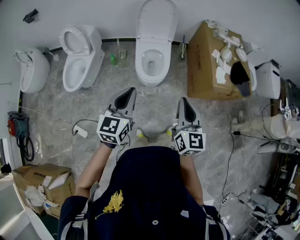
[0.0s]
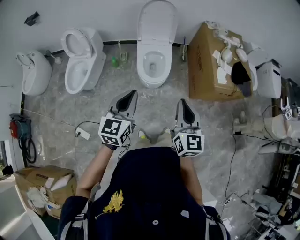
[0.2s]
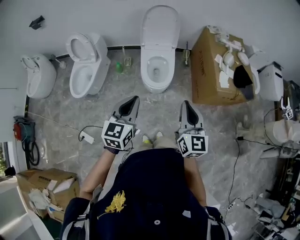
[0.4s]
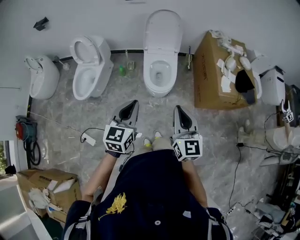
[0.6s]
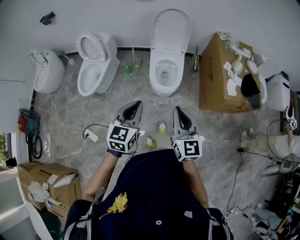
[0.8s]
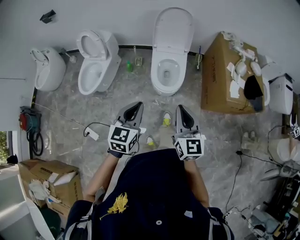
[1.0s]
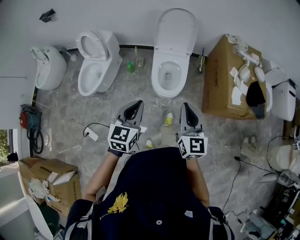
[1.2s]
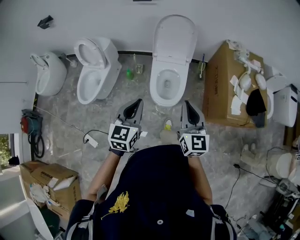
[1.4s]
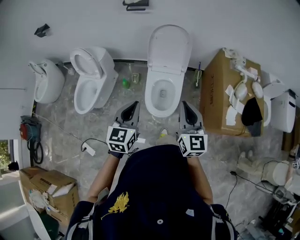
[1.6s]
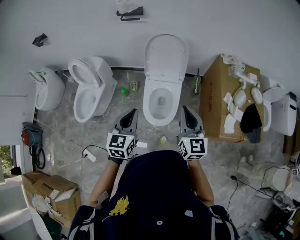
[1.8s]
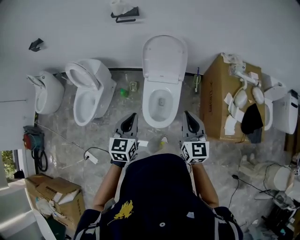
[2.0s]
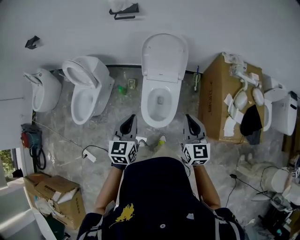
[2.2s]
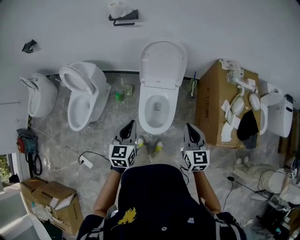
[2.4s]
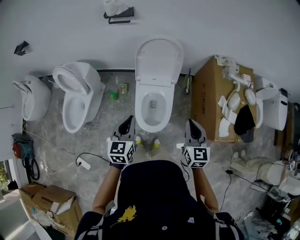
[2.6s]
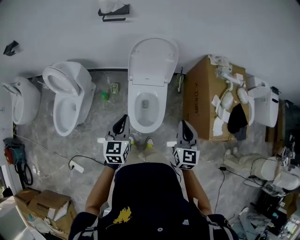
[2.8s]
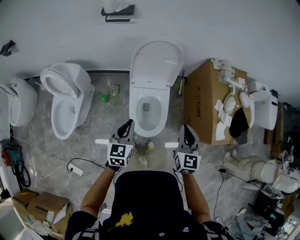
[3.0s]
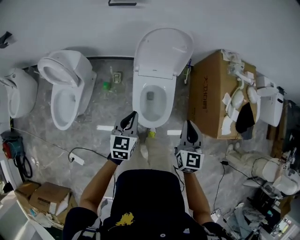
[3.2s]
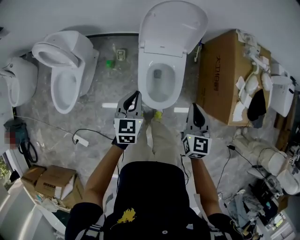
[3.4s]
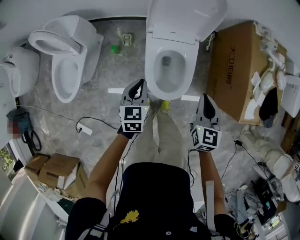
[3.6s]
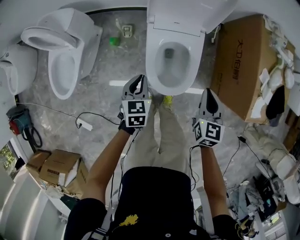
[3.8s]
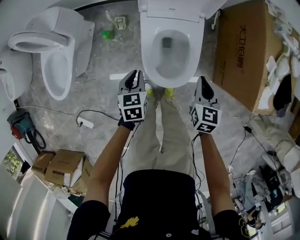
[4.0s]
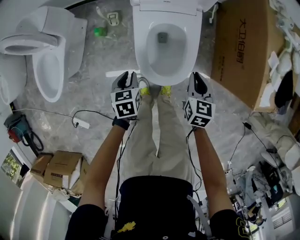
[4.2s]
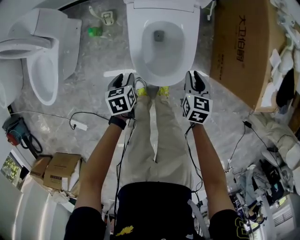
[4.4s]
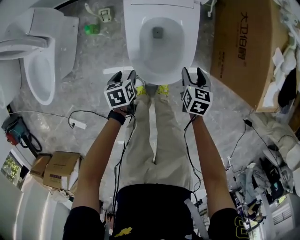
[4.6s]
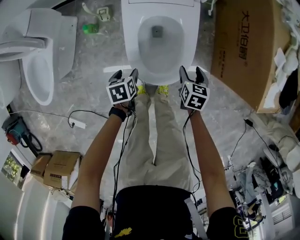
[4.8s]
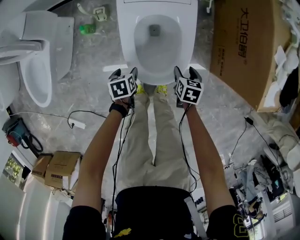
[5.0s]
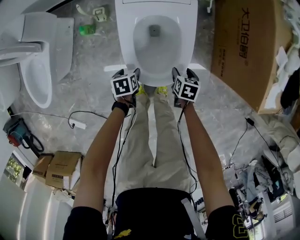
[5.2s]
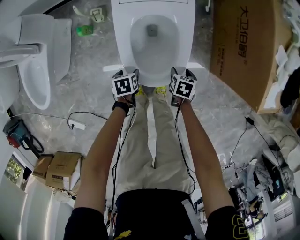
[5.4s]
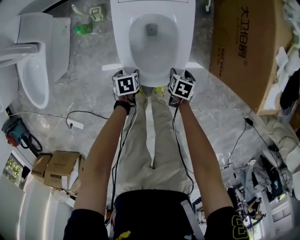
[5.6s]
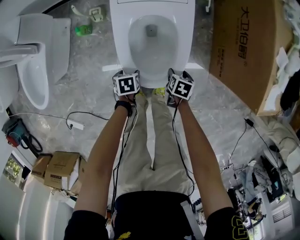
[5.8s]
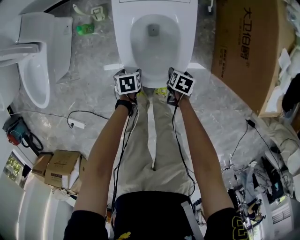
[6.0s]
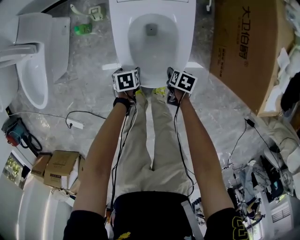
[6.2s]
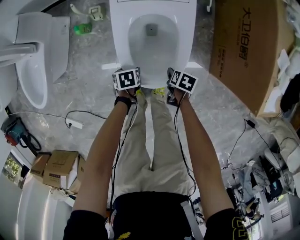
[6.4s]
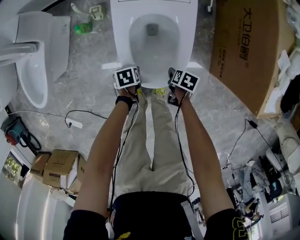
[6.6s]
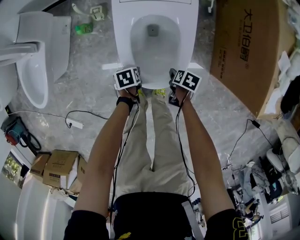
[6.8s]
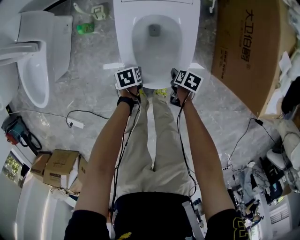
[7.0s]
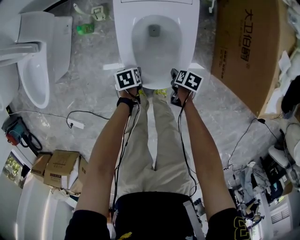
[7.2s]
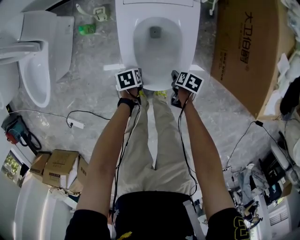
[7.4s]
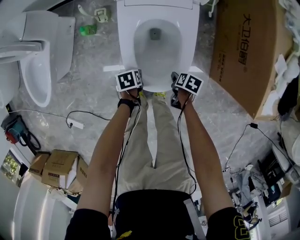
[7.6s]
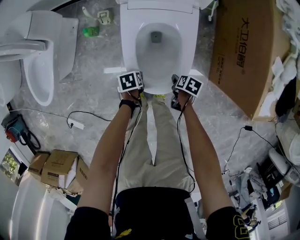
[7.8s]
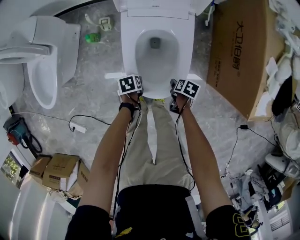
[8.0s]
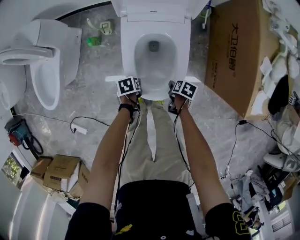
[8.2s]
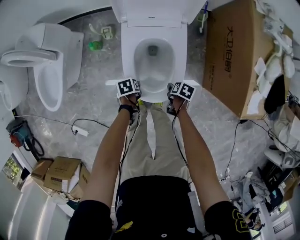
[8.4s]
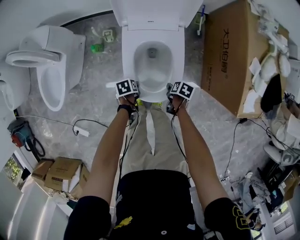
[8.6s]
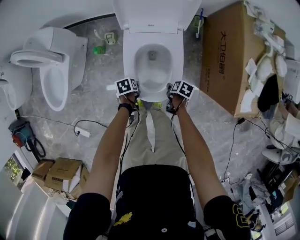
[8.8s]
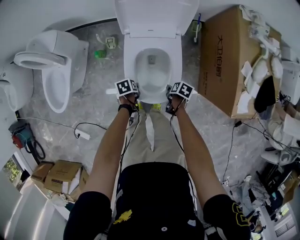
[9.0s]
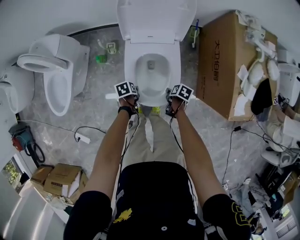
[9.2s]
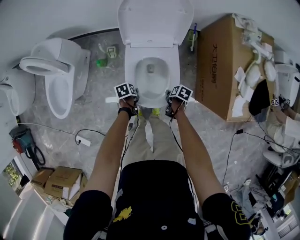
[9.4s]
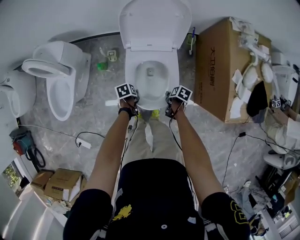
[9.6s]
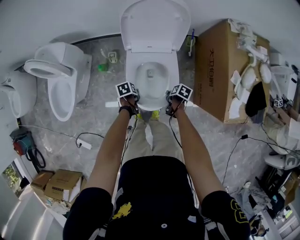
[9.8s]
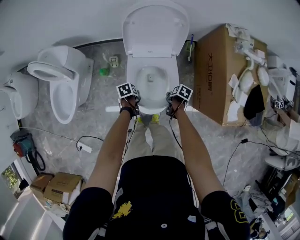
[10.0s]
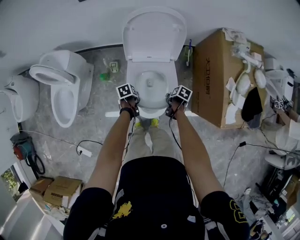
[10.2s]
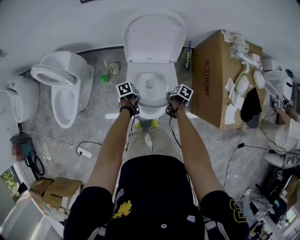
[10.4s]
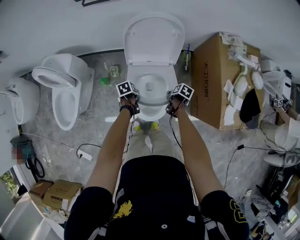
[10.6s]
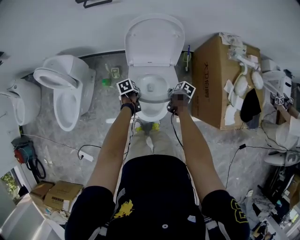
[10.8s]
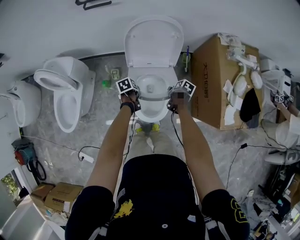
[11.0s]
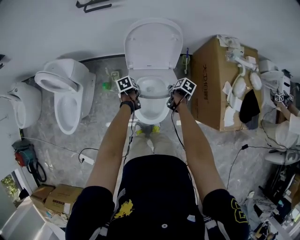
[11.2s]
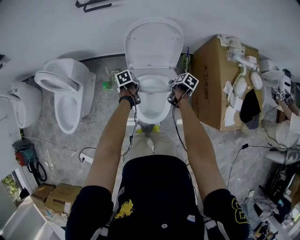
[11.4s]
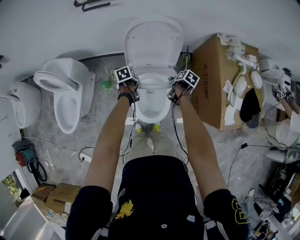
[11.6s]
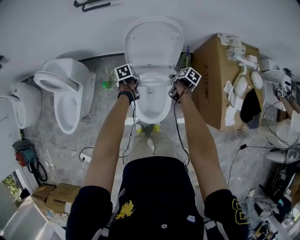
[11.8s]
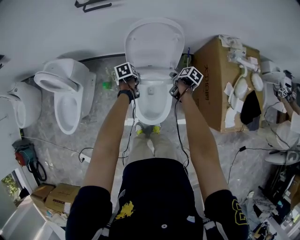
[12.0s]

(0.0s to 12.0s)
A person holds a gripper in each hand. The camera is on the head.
0.0s - 1.6s: Both grippers move forward, roughly 25 cm.
1.6s - 3.0s: Both grippers travel together forward and downward, some 20 cm. The right gripper turns by about 20 degrees.
3.0s - 4.4s: The grippers both shift downward by approximately 40 cm. The right gripper changes its angle by roughly 30 degrees; the left gripper points its fingers approximately 40 degrees further downward, and opens its fingers.
4.4s - 6.0s: The left gripper travels downward by about 15 cm, and opens its fingers. Meanwhile the right gripper is displaced downward by approximately 20 cm, turns by roughly 40 degrees, and opens up.
6.0s - 7.6s: The grippers stay close to where they were, moving slightly.
7.6s - 9.0s: The grippers both shift upward by roughly 15 cm.
9.0s - 10.4s: Both grippers travel together upward, approximately 10 cm.
10.4s - 12.0s: The left gripper shifts by roughly 15 cm, while the right gripper shifts by roughly 15 cm.

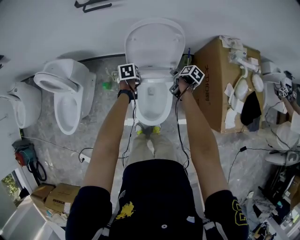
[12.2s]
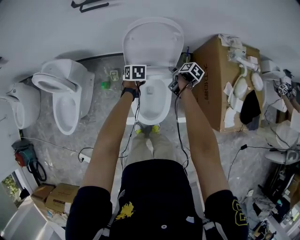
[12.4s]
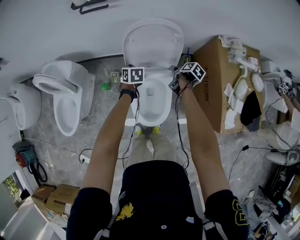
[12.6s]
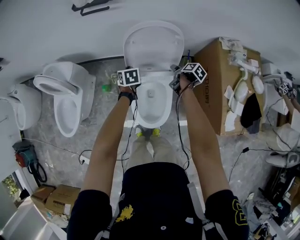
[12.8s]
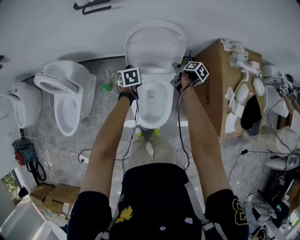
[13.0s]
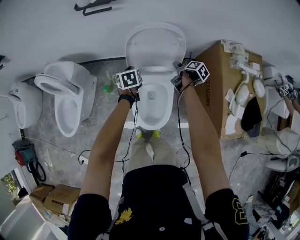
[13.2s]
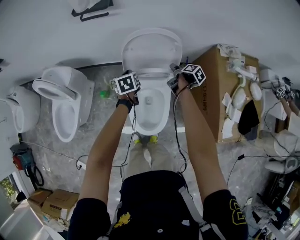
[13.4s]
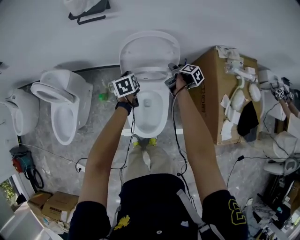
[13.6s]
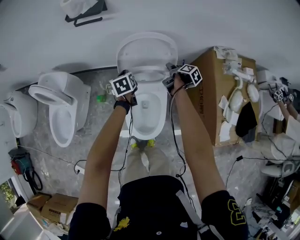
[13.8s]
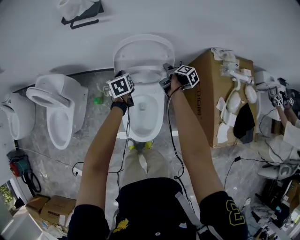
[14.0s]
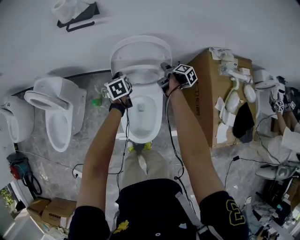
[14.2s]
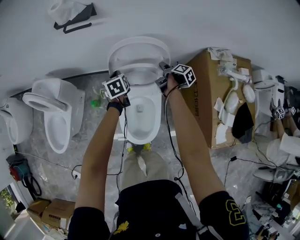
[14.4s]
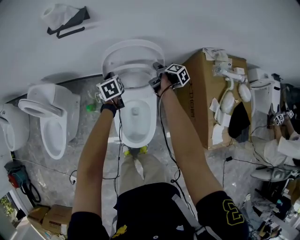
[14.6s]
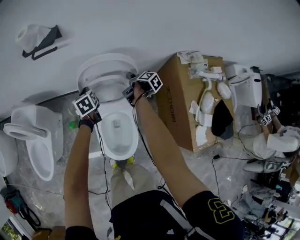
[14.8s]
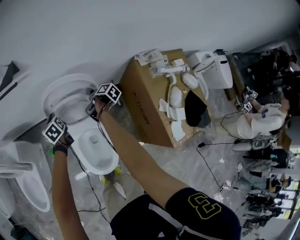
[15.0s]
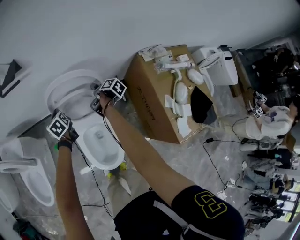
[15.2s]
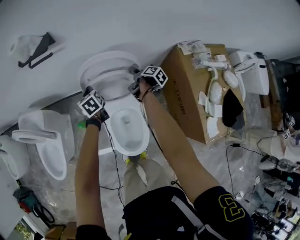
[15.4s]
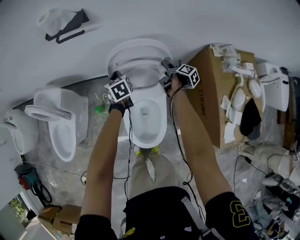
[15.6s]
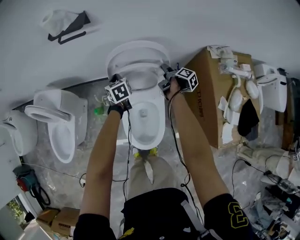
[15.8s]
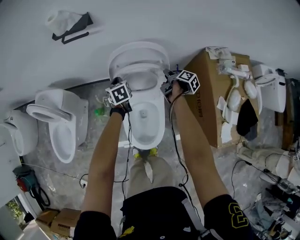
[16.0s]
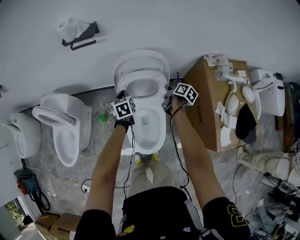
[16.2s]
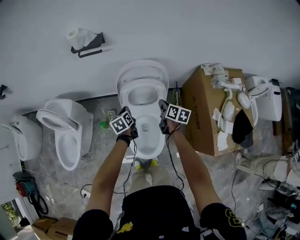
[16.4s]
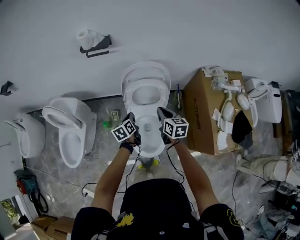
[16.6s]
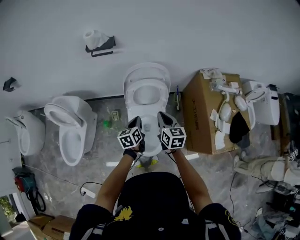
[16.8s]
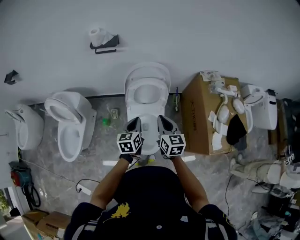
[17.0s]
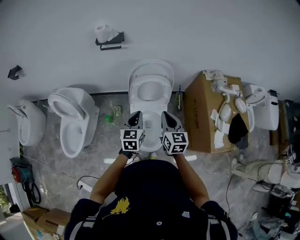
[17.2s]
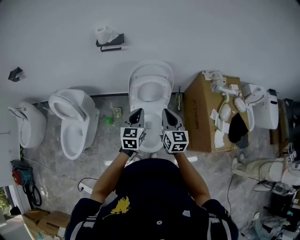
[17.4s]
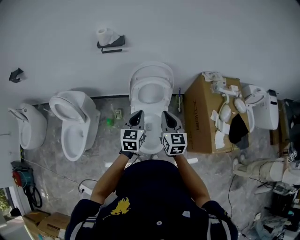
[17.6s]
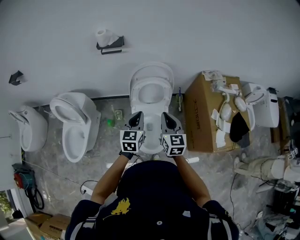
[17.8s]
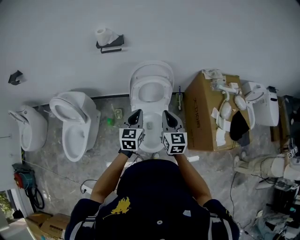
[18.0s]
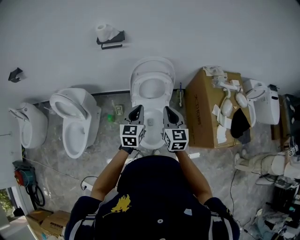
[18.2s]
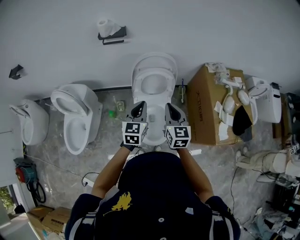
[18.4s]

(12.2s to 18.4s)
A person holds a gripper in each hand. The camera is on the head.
12.2s - 13.8s: The right gripper is displaced forward by roughly 10 cm, and swivels some 20 degrees, while the left gripper travels upward and forward by some 10 cm, and changes its angle by some 20 degrees.
13.8s - 15.4s: The two grippers go roughly 5 cm forward.
15.4s - 16.8s: The left gripper shifts about 25 cm backward and upward, and rotates some 20 degrees. The right gripper goes some 35 cm backward, upward and to the left, twists some 70 degrees counterclockwise, seen from behind, and closes.
16.8s - 18.4s: The left gripper is displaced upward by about 15 cm, and turns by some 30 degrees. The right gripper goes some 10 cm upward and backward.

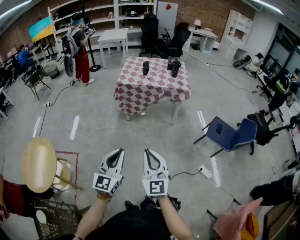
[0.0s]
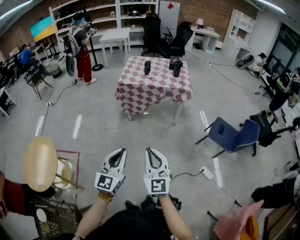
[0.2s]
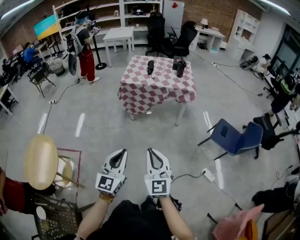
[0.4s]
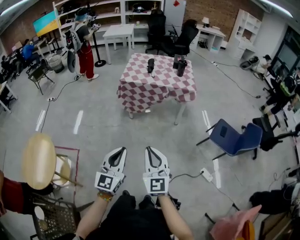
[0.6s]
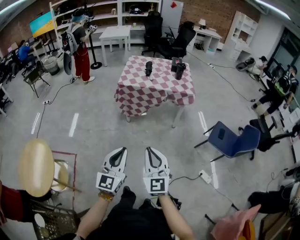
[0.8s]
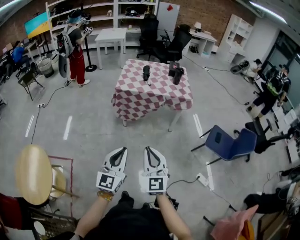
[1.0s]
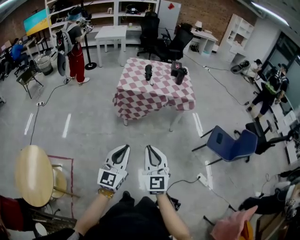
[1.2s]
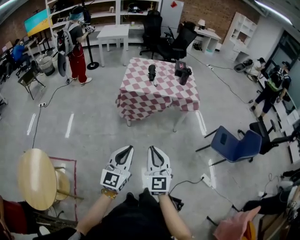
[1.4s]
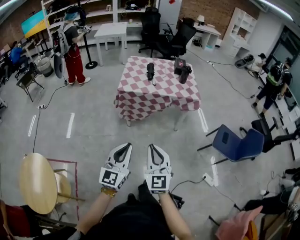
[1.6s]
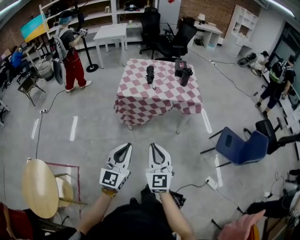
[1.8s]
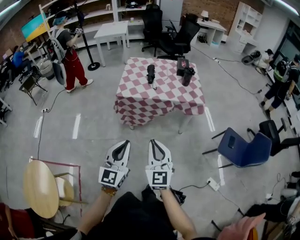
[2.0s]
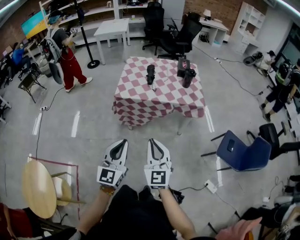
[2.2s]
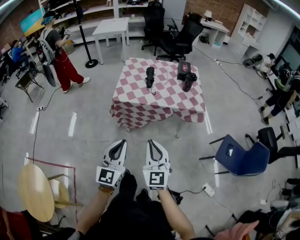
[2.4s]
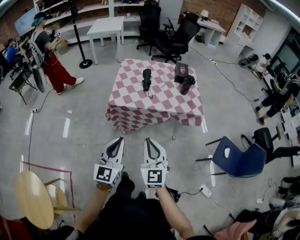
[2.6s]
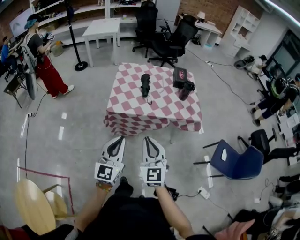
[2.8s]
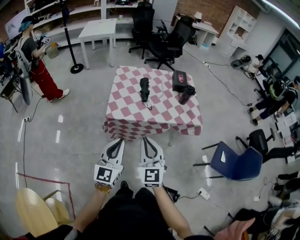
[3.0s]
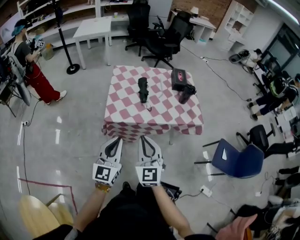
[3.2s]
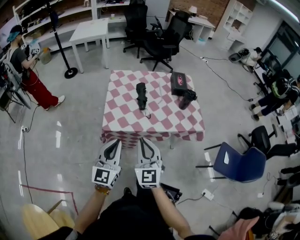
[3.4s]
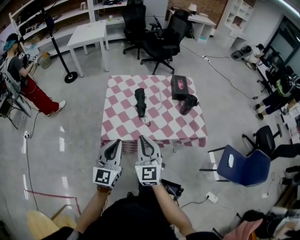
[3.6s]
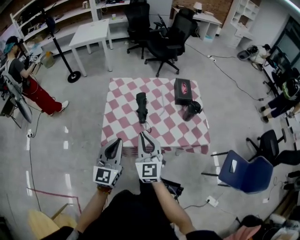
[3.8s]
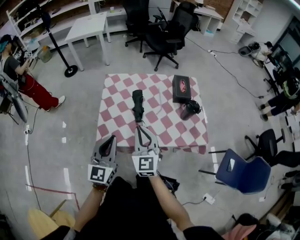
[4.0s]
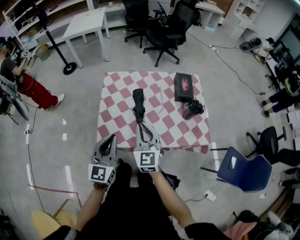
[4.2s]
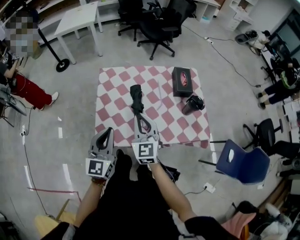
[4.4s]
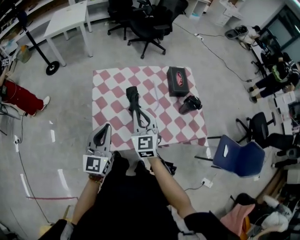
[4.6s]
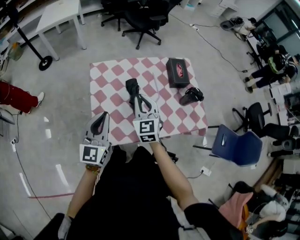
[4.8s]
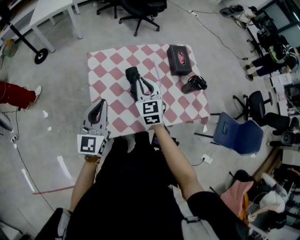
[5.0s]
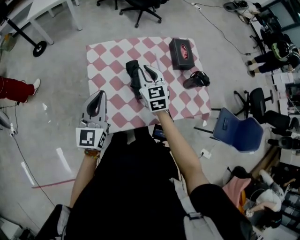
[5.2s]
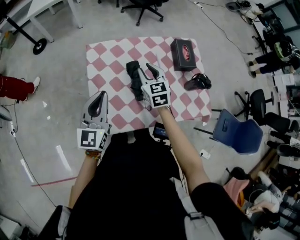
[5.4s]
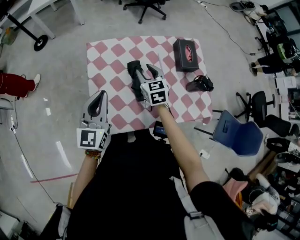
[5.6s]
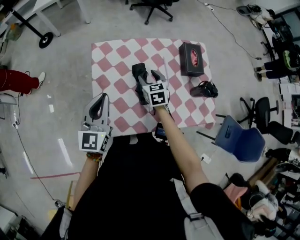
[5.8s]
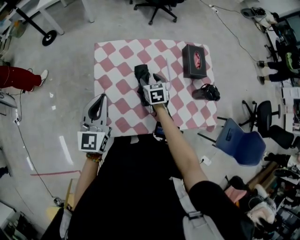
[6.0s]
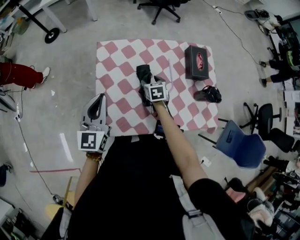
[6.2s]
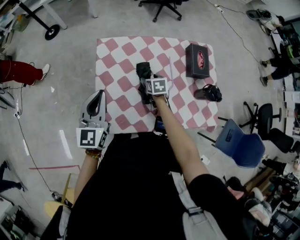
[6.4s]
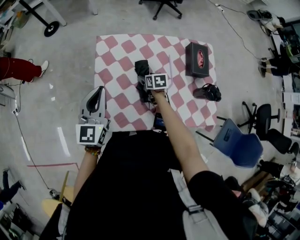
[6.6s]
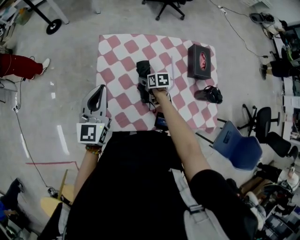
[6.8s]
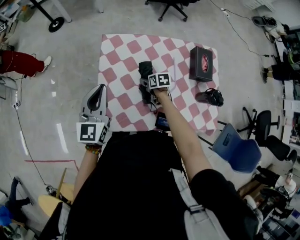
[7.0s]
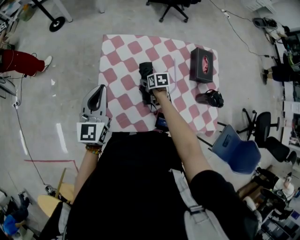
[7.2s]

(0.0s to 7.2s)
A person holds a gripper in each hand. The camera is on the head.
0.0s - 1.4s: The left gripper shifts approximately 20 cm forward. Meanwhile the right gripper goes approximately 20 cm forward and to the left.
1.4s - 2.8s: Both grippers travel together forward, roughly 40 cm.
2.8s - 4.4s: The two grippers travel together, forward, some 40 cm.
4.4s - 5.8s: The left gripper shifts some 15 cm forward and to the left. Meanwhile the right gripper moves forward and downward, some 30 cm, turns by some 30 degrees, and opens.
5.8s - 7.2s: The right gripper is displaced downward by approximately 15 cm, and turns by some 30 degrees.
